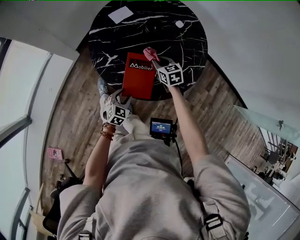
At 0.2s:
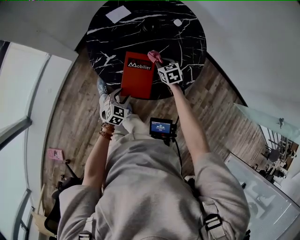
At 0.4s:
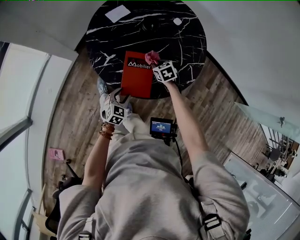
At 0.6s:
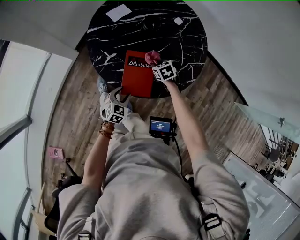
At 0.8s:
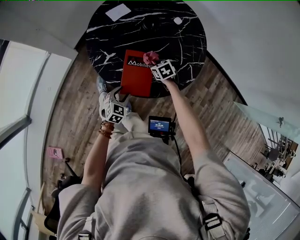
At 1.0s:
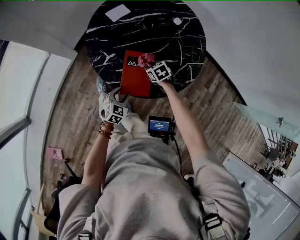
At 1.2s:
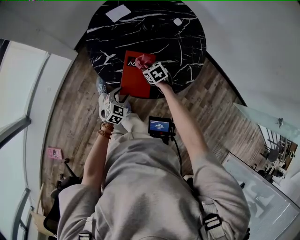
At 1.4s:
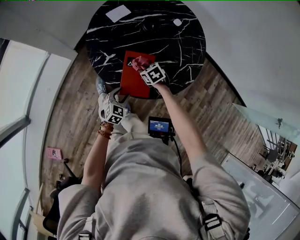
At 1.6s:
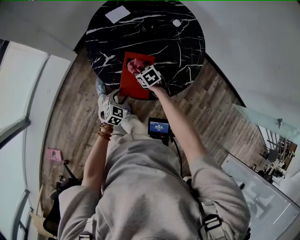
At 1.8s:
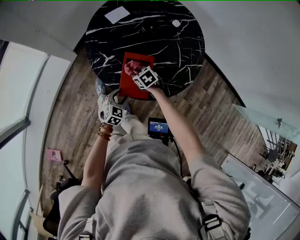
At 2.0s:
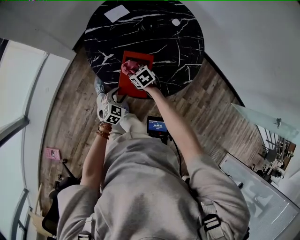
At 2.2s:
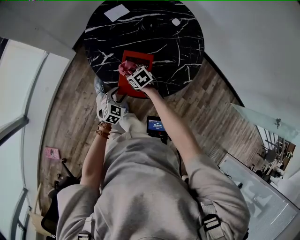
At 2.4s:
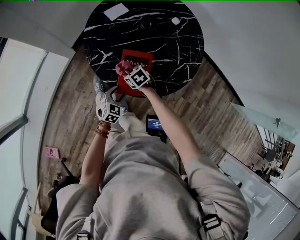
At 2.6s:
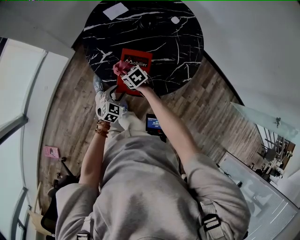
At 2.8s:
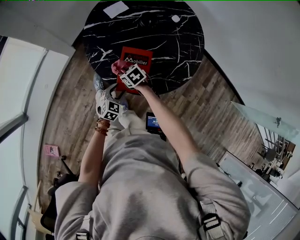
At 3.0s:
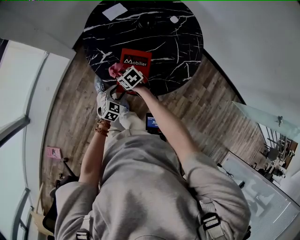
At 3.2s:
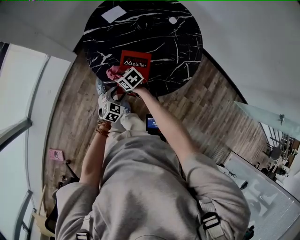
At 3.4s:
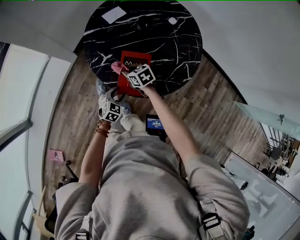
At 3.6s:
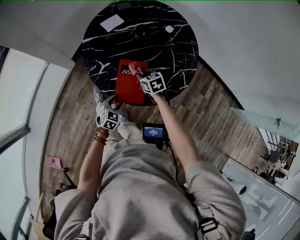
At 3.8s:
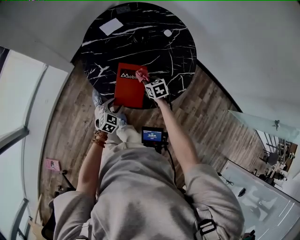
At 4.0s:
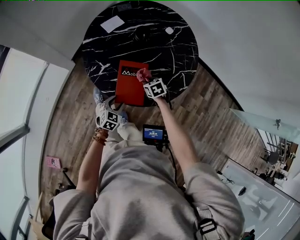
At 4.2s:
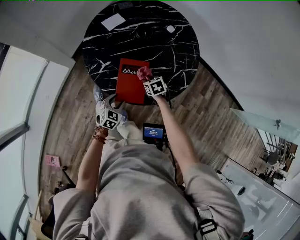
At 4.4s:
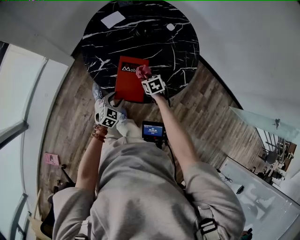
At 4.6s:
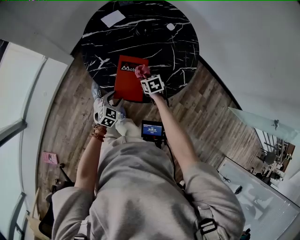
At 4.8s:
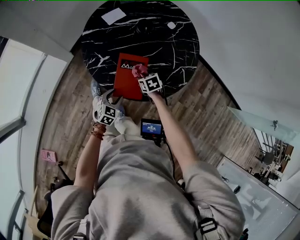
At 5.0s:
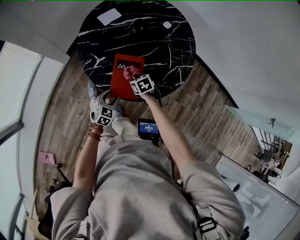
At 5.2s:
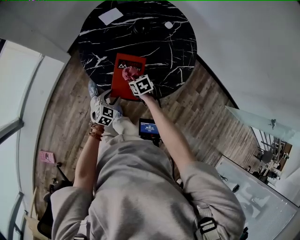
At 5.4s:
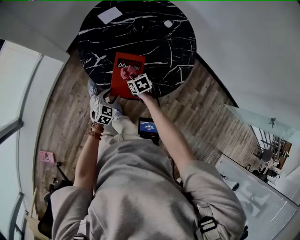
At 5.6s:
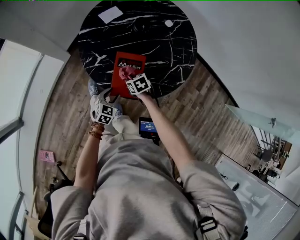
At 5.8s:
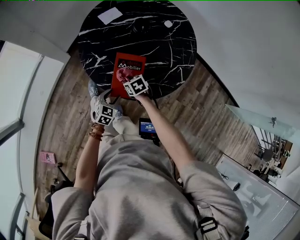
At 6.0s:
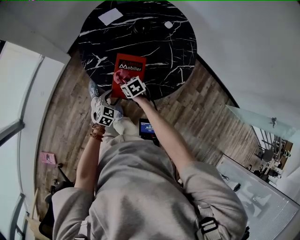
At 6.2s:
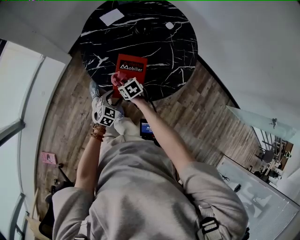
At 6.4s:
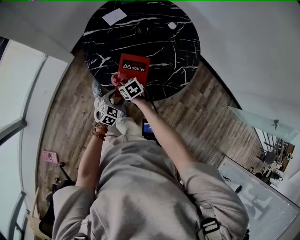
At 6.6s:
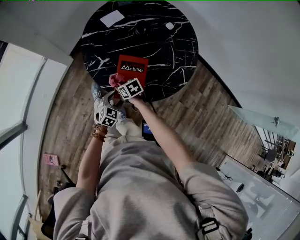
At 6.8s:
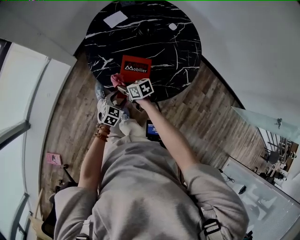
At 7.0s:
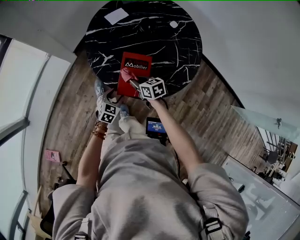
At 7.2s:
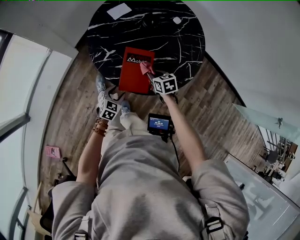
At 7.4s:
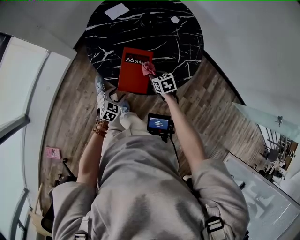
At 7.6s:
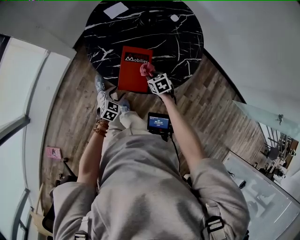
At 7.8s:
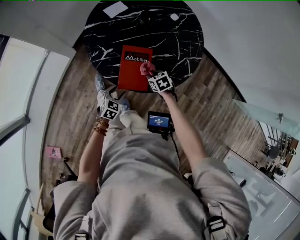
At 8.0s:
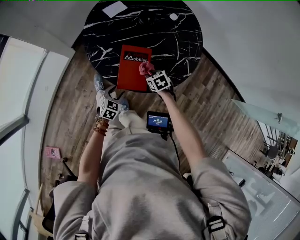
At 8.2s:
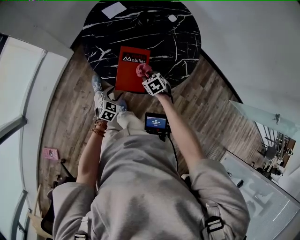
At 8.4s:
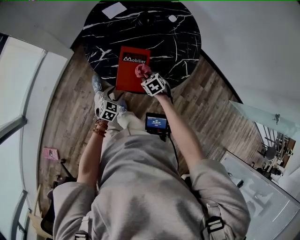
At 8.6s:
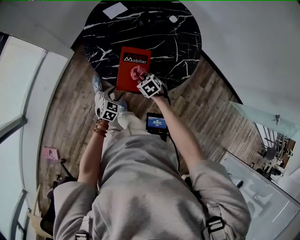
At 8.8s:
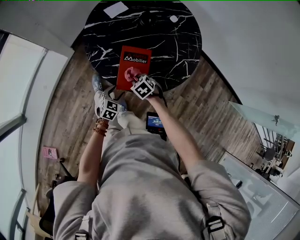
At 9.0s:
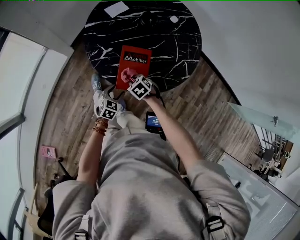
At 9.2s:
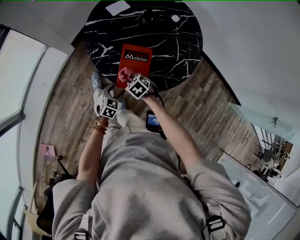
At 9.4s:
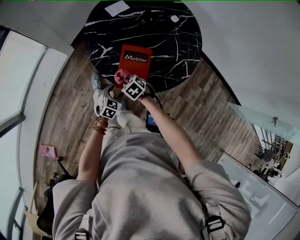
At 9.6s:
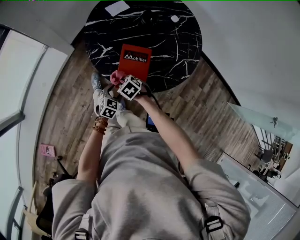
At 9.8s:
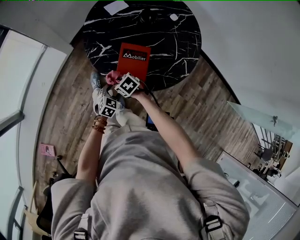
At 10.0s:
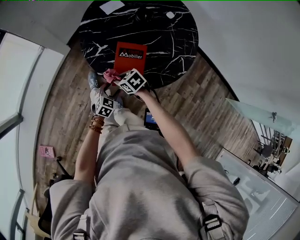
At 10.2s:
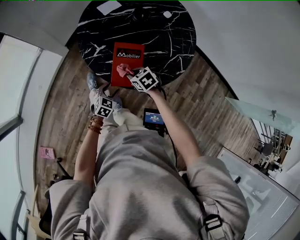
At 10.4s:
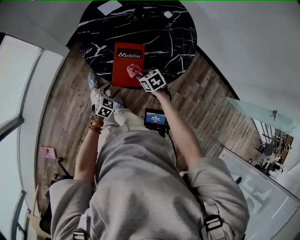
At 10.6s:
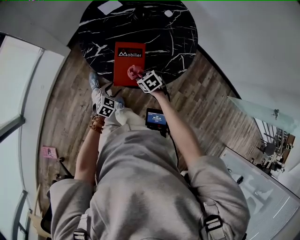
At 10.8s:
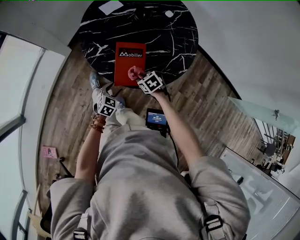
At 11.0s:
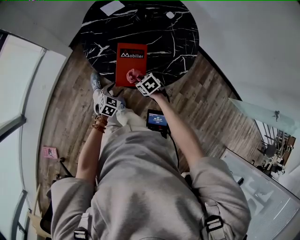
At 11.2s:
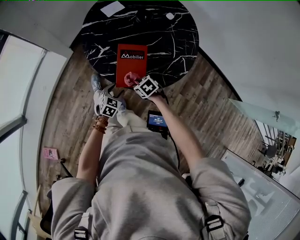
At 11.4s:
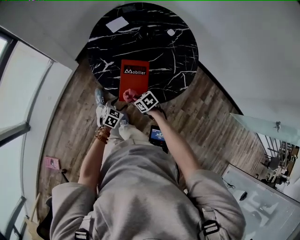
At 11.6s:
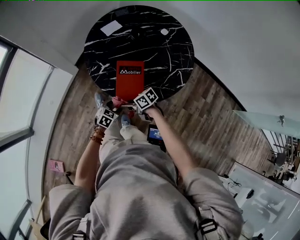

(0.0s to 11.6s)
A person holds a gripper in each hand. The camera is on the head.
0.0s - 1.4s: The right gripper goes approximately 10 cm downward and backward, and swivels roughly 20 degrees.
1.4s - 2.8s: The right gripper shifts about 10 cm to the left.
2.8s - 4.4s: The right gripper is displaced to the right by about 15 cm, and turns by about 20 degrees.
4.4s - 5.8s: The right gripper moves to the left, roughly 10 cm.
5.8s - 7.2s: The right gripper travels to the right by some 10 cm.
7.2s - 8.8s: The right gripper moves to the left and backward, roughly 10 cm, and turns by some 30 degrees.
8.8s - 10.2s: The right gripper reaches about 10 cm to the left, then returns.
10.2s - 11.6s: The right gripper moves approximately 10 cm, and tips its fingers upward by approximately 30 degrees.

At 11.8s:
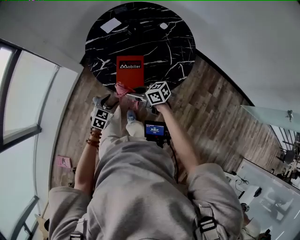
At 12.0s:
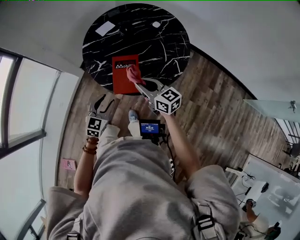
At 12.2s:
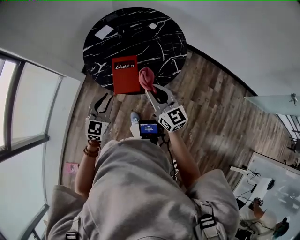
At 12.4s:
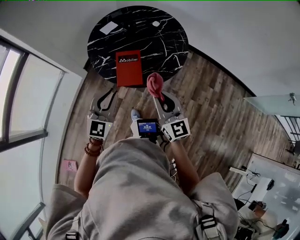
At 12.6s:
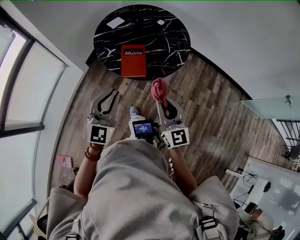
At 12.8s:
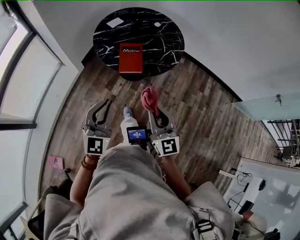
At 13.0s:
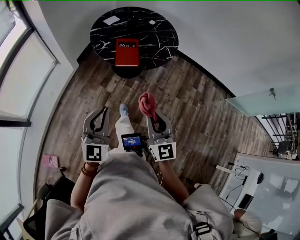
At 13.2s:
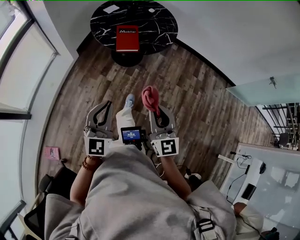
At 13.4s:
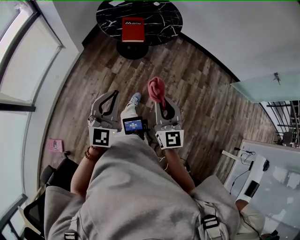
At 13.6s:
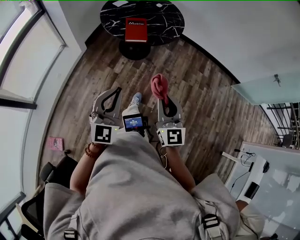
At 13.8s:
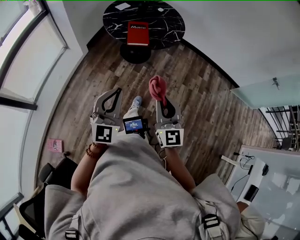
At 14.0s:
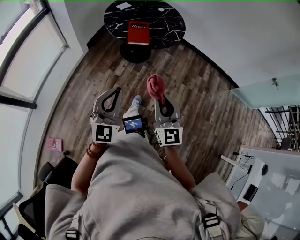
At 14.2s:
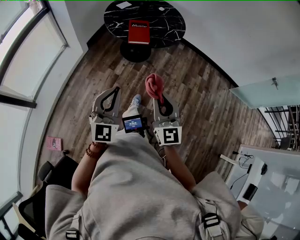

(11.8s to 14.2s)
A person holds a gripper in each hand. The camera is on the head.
11.8s - 13.0s: The right gripper ends up approximately 40 cm from where it was, and turns by about 80 degrees, while the left gripper ends up about 50 cm from where it was, tilts its fingers about 40 degrees upward, and closes.
13.0s - 14.2s: Both grippers travel together backward, roughly 10 cm.

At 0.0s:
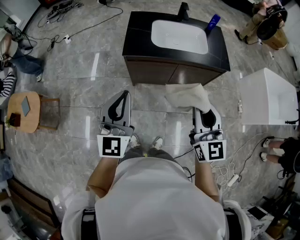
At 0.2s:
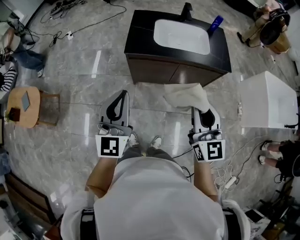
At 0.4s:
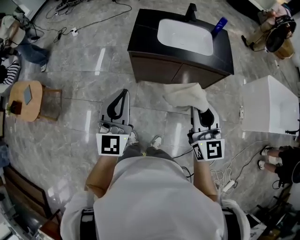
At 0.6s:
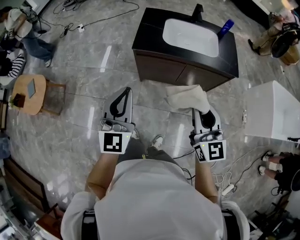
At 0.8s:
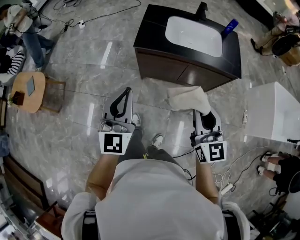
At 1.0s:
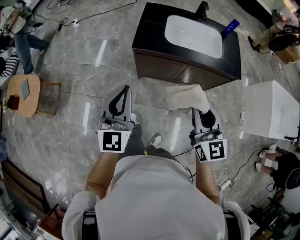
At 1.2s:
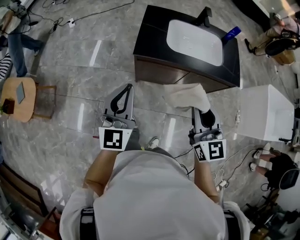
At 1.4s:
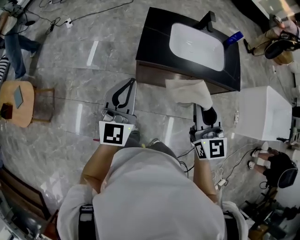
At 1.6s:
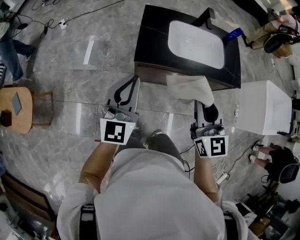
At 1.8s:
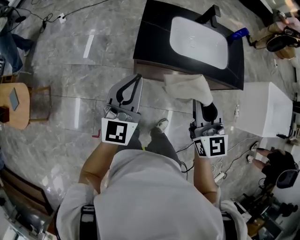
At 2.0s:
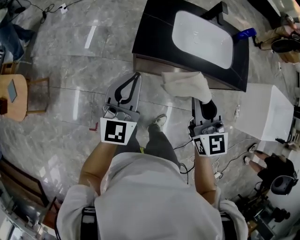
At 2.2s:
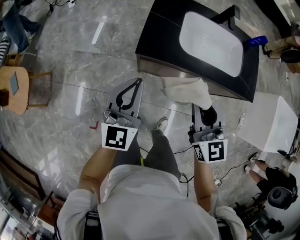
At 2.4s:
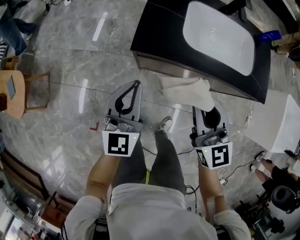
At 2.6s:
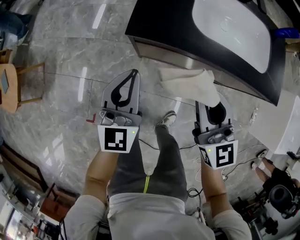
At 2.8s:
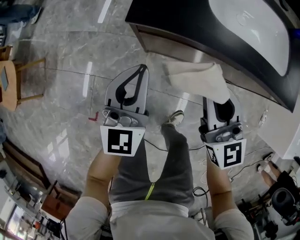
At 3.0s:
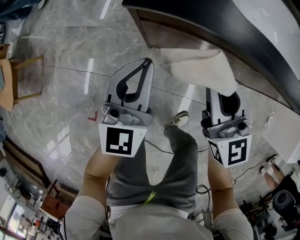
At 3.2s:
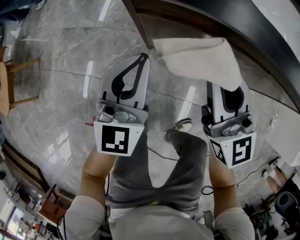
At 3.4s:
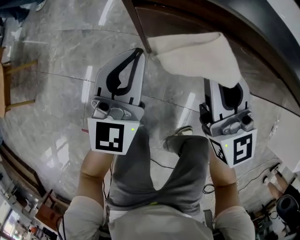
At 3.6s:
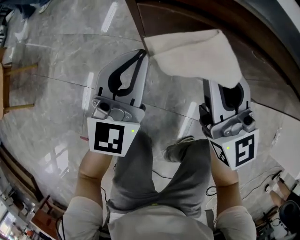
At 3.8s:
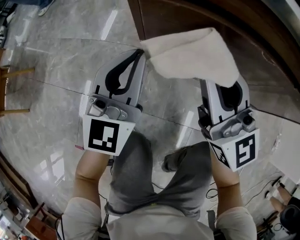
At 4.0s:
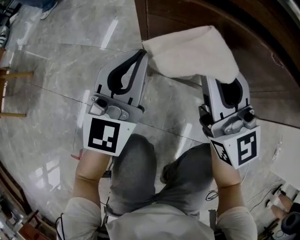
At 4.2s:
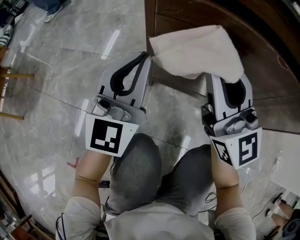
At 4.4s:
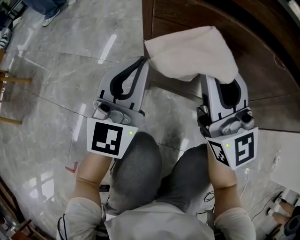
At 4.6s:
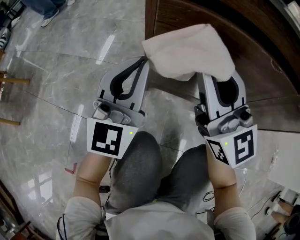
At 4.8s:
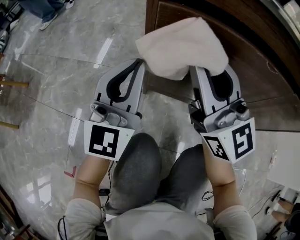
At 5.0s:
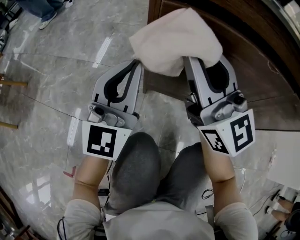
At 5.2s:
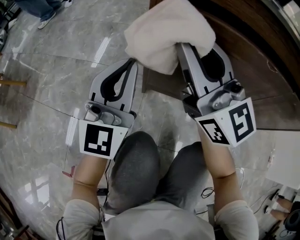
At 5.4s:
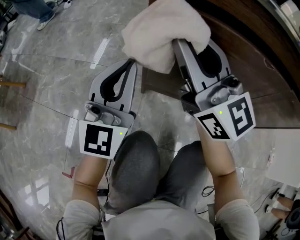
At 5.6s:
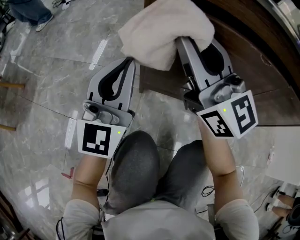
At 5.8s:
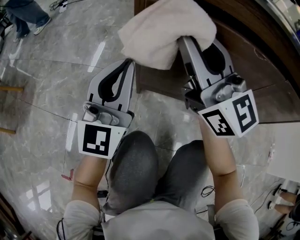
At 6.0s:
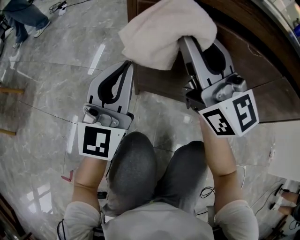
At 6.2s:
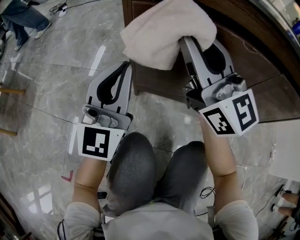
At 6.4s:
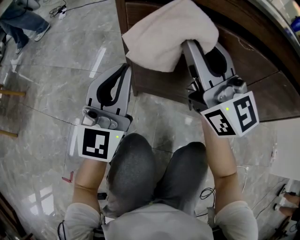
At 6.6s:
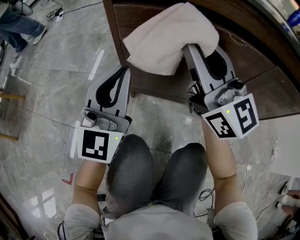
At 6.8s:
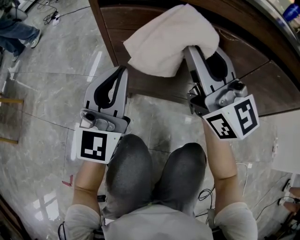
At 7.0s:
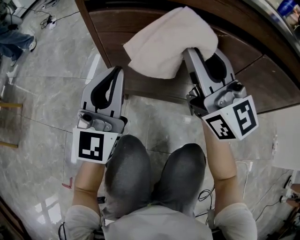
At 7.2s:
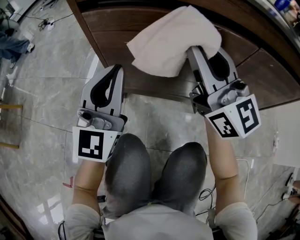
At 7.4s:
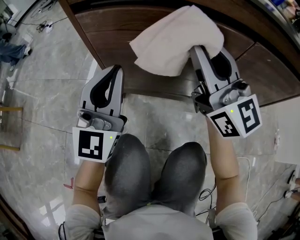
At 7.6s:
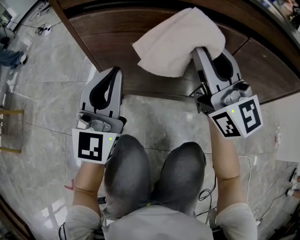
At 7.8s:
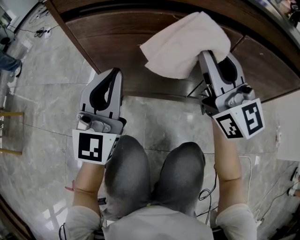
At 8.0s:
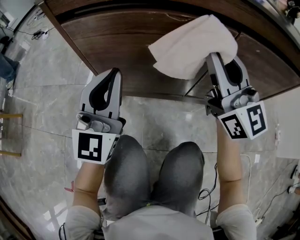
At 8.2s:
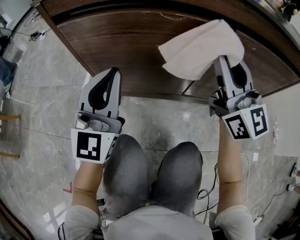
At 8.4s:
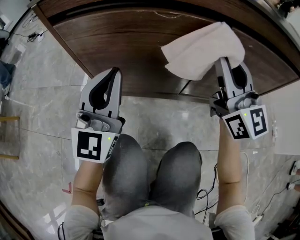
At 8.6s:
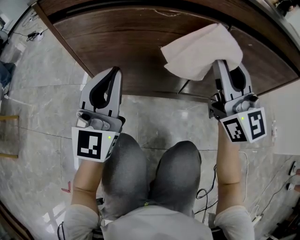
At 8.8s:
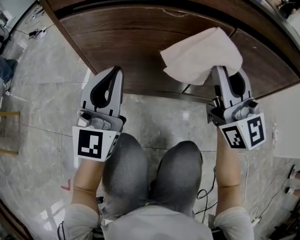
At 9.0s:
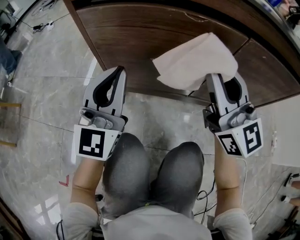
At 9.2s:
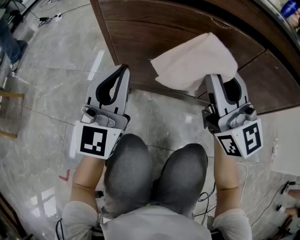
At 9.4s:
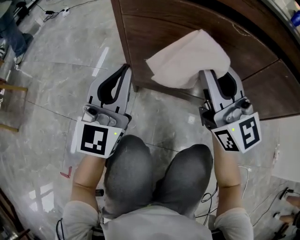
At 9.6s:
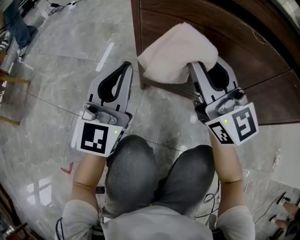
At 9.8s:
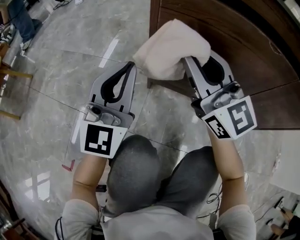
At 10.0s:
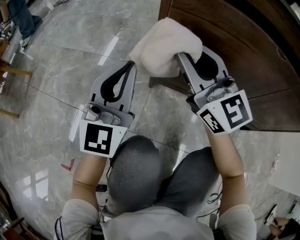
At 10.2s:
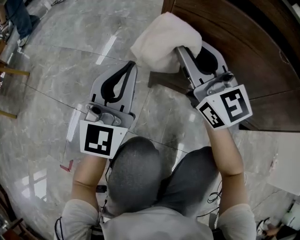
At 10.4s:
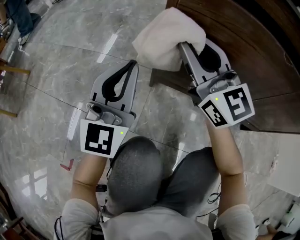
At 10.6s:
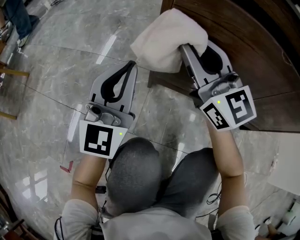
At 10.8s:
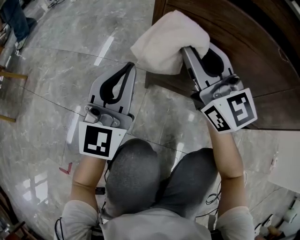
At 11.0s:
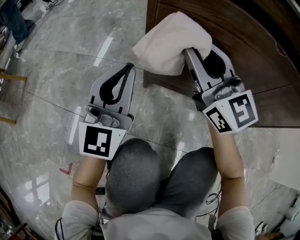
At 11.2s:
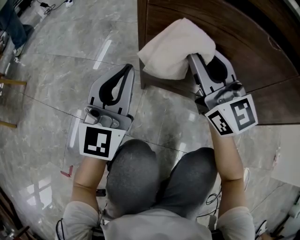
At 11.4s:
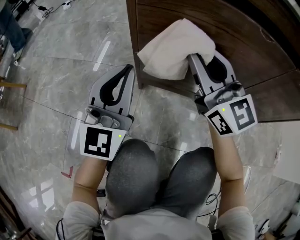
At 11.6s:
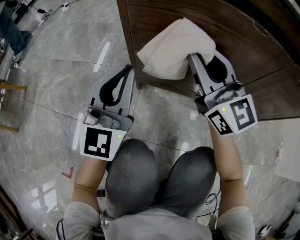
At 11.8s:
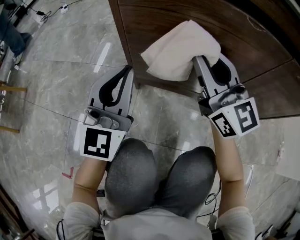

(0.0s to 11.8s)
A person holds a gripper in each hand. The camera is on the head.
0.0s - 1.4s: Both grippers travel together forward and to the left, about 20 cm.
1.4s - 3.0s: The two grippers go some 40 cm downward.
3.0s - 4.4s: Both grippers travel together downward, some 20 cm. The right gripper turns by roughly 20 degrees.
6.0s - 7.4s: Both grippers move to the right, roughly 15 cm.
7.4s - 8.8s: The right gripper moves to the right, about 10 cm.
8.8s - 10.4s: The right gripper travels to the left and forward by about 35 cm, and changes its angle by approximately 20 degrees. The left gripper shifts some 20 cm to the left.
10.4s - 11.8s: The grippers both shift to the right by some 15 cm.
